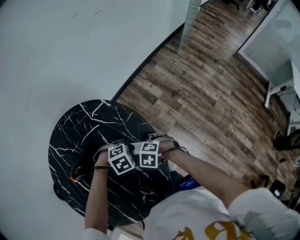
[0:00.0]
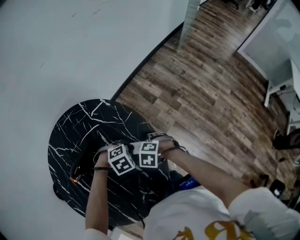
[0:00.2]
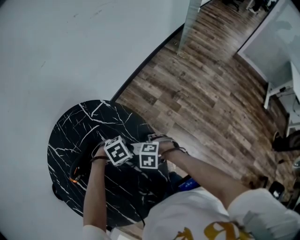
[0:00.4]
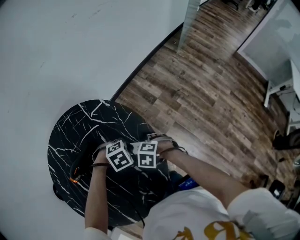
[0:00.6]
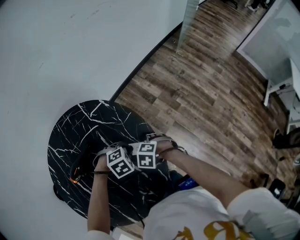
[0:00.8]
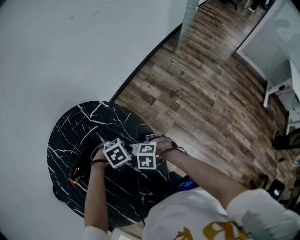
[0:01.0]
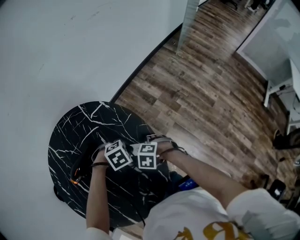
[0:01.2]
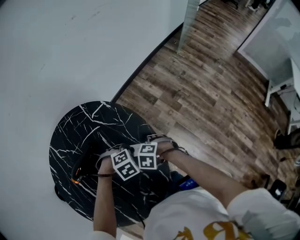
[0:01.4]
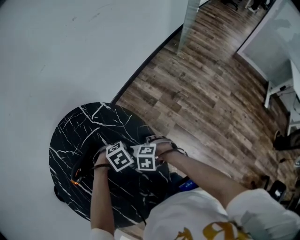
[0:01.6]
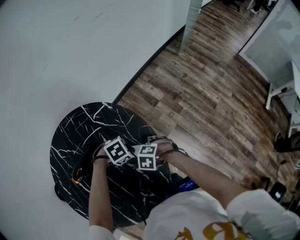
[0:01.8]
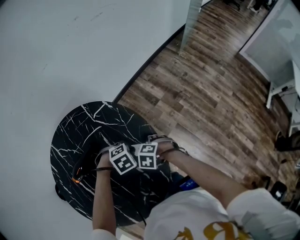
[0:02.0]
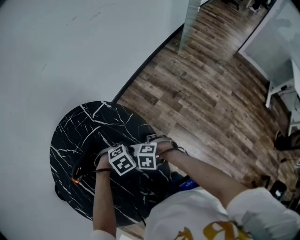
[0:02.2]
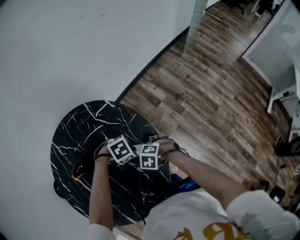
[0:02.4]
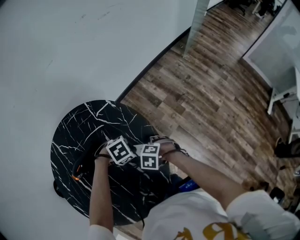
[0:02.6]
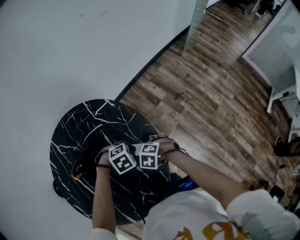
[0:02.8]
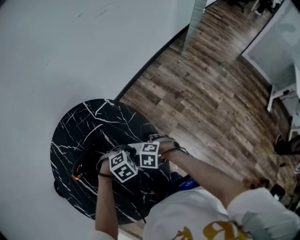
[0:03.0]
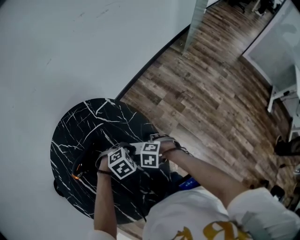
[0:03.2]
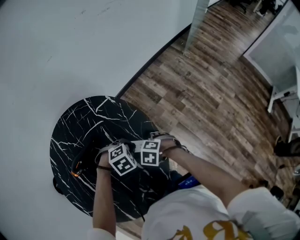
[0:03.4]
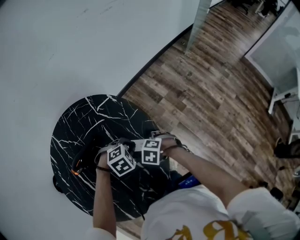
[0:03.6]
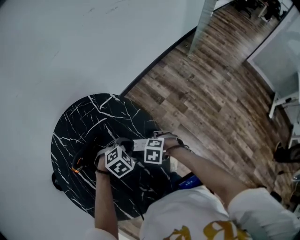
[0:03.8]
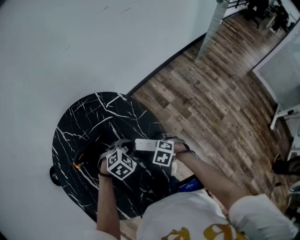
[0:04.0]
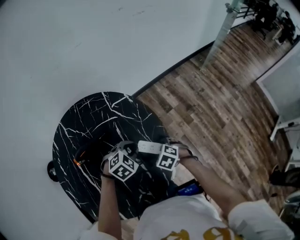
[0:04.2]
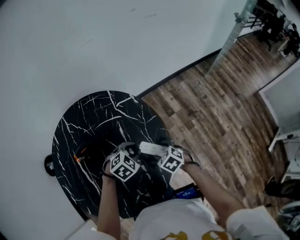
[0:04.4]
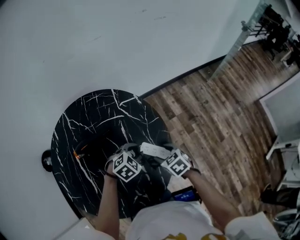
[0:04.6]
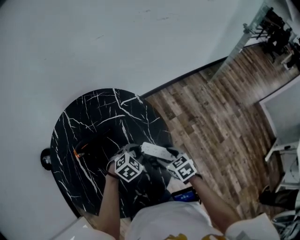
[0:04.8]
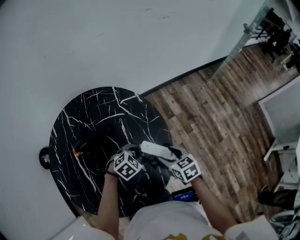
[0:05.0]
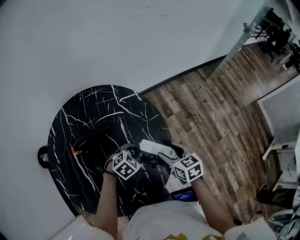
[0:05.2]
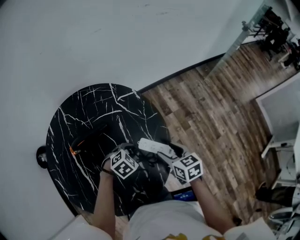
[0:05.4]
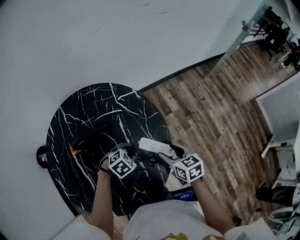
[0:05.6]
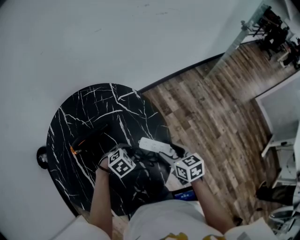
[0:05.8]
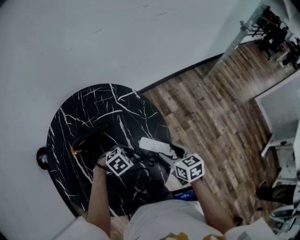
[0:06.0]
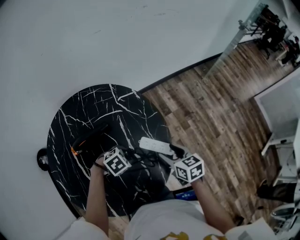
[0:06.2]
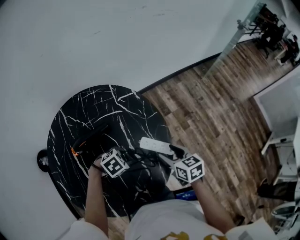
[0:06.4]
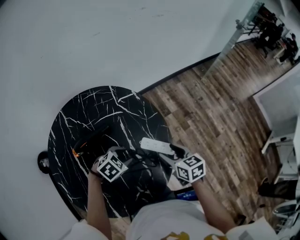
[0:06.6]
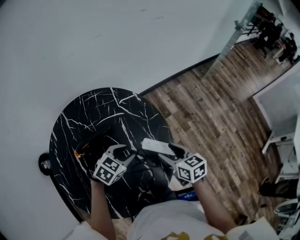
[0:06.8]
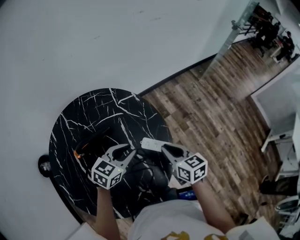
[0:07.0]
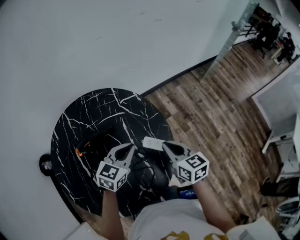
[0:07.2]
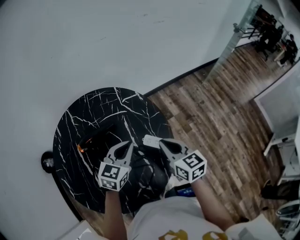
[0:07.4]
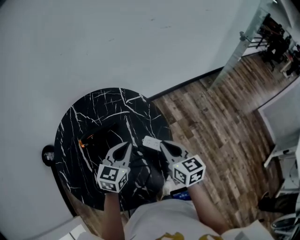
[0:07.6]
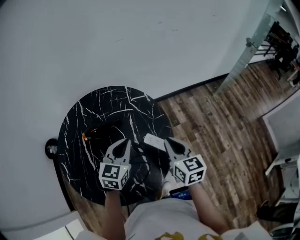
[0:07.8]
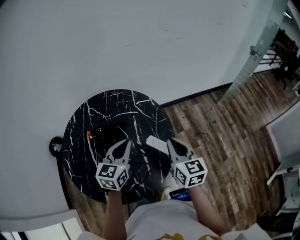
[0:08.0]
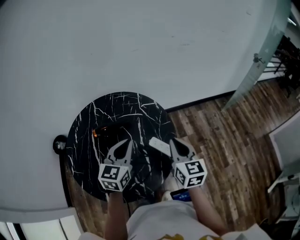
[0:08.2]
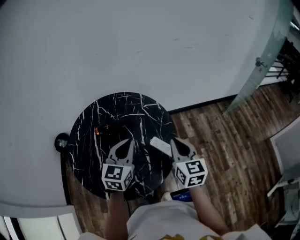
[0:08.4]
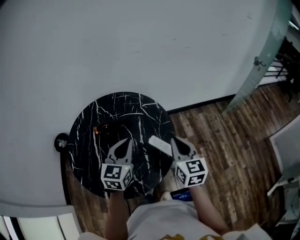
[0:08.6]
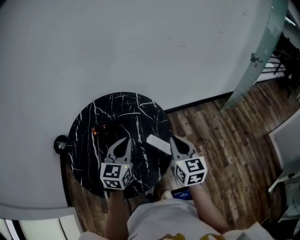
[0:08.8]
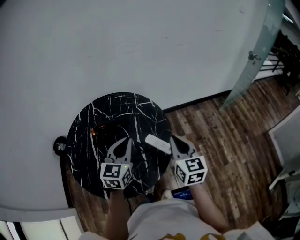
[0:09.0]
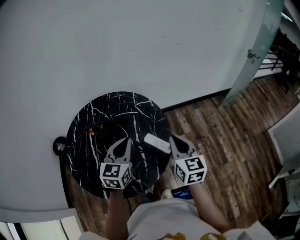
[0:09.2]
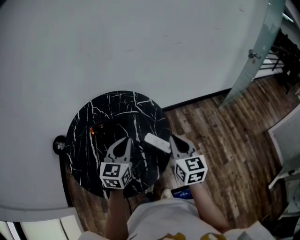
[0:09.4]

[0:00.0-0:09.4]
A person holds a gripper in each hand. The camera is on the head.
0:00.0 to 0:03.2: There are only small adjustments of the grippers.
0:03.2 to 0:04.8: The left gripper turns by approximately 30 degrees, while the right gripper shifts about 5 cm upward, and changes its angle by some 40 degrees.
0:04.8 to 0:06.2: The left gripper moves some 10 cm, and changes its angle by roughly 20 degrees, while the right gripper turns by approximately 20 degrees.
0:06.2 to 0:07.8: The two grippers go roughly 15 cm upward. The right gripper turns by some 20 degrees, and closes; the left gripper angles its fingers upward, by about 50 degrees, and closes up.
0:07.8 to 0:09.4: The left gripper moves upward and backward, some 10 cm, while the right gripper moves upward, approximately 5 cm.

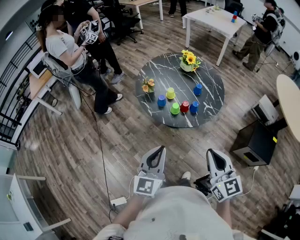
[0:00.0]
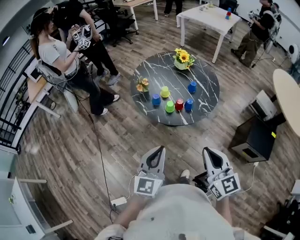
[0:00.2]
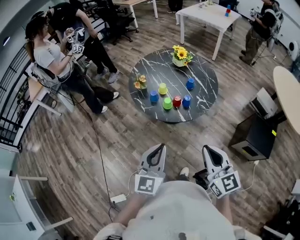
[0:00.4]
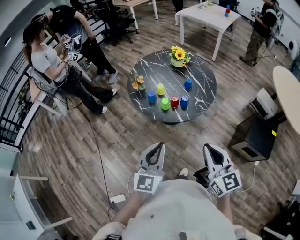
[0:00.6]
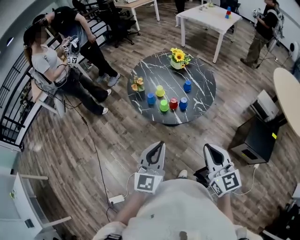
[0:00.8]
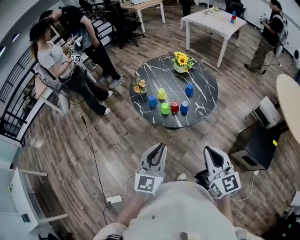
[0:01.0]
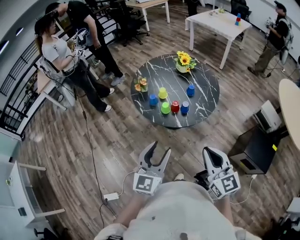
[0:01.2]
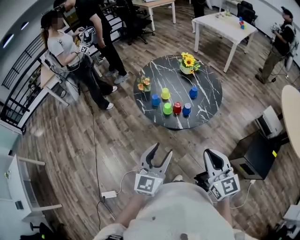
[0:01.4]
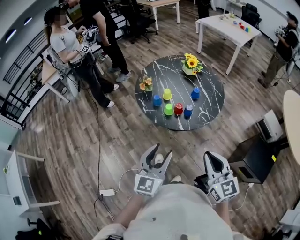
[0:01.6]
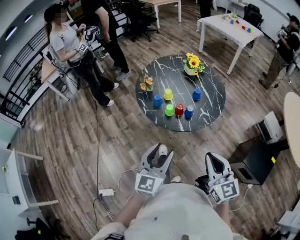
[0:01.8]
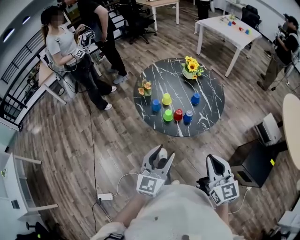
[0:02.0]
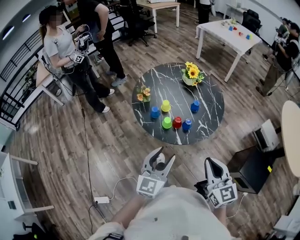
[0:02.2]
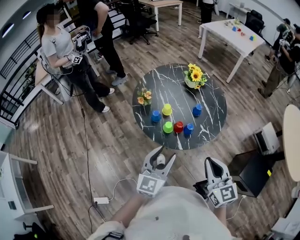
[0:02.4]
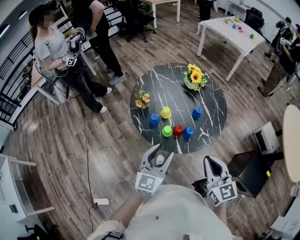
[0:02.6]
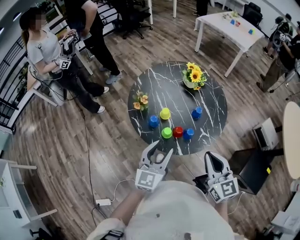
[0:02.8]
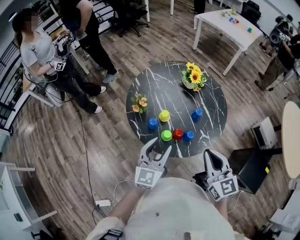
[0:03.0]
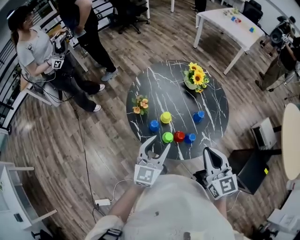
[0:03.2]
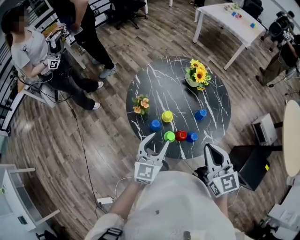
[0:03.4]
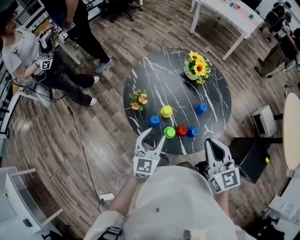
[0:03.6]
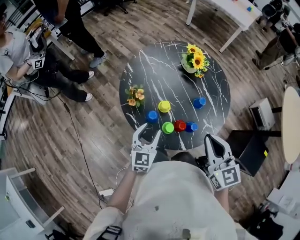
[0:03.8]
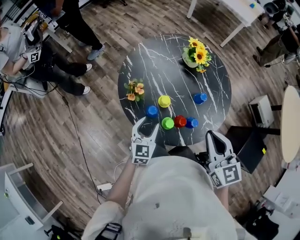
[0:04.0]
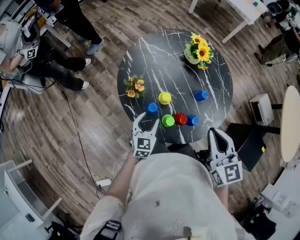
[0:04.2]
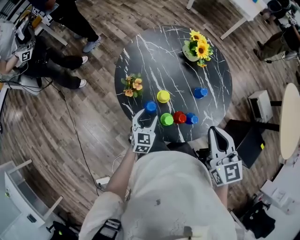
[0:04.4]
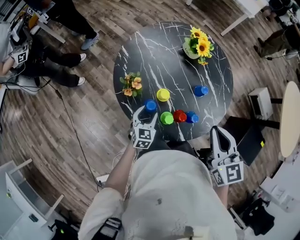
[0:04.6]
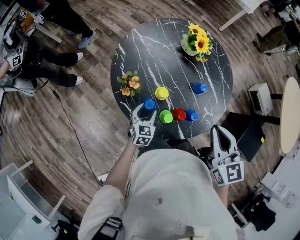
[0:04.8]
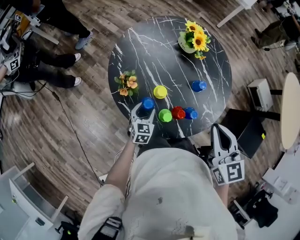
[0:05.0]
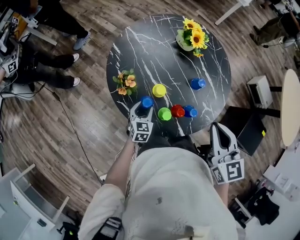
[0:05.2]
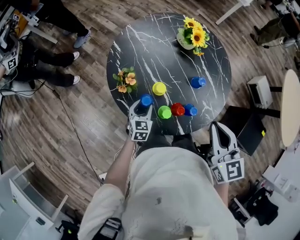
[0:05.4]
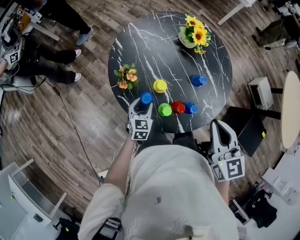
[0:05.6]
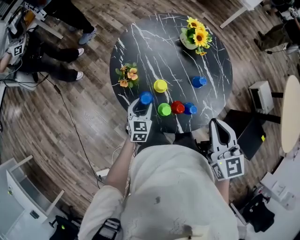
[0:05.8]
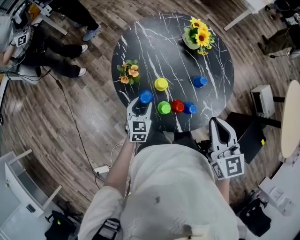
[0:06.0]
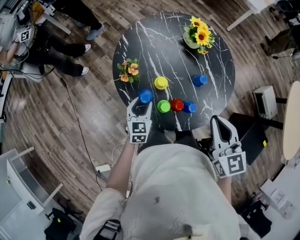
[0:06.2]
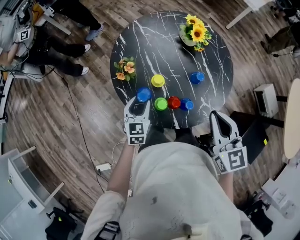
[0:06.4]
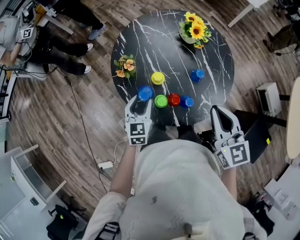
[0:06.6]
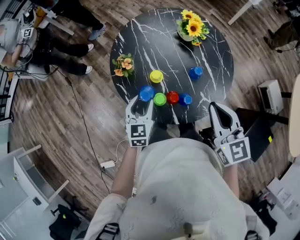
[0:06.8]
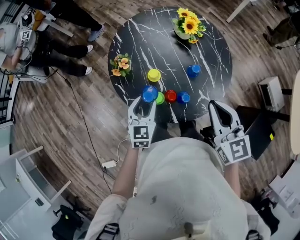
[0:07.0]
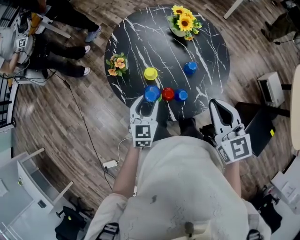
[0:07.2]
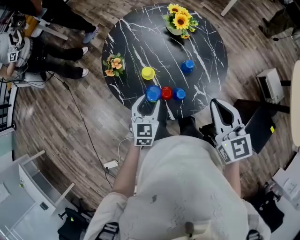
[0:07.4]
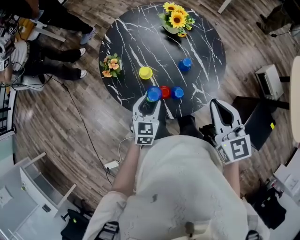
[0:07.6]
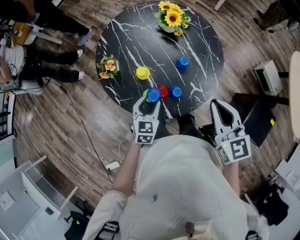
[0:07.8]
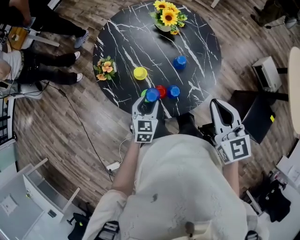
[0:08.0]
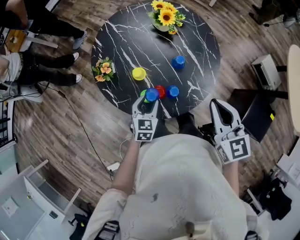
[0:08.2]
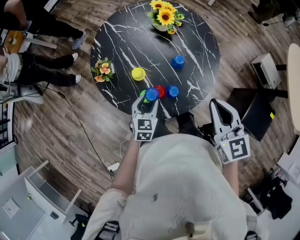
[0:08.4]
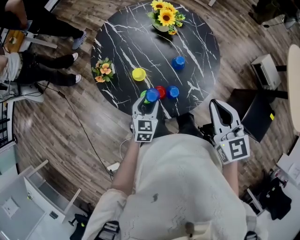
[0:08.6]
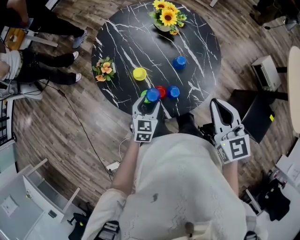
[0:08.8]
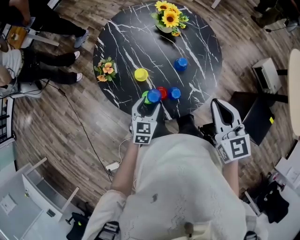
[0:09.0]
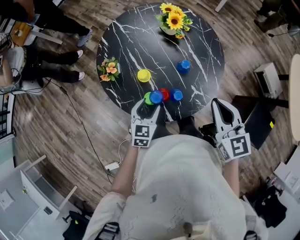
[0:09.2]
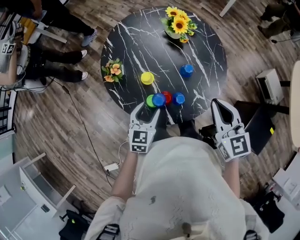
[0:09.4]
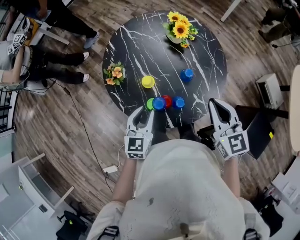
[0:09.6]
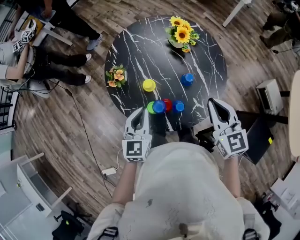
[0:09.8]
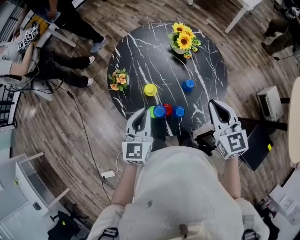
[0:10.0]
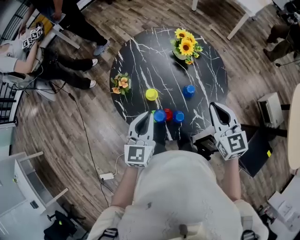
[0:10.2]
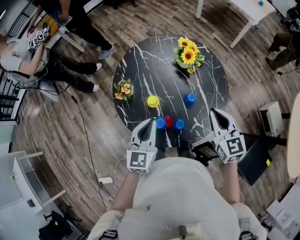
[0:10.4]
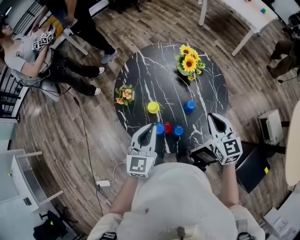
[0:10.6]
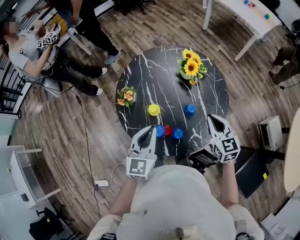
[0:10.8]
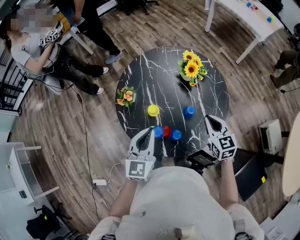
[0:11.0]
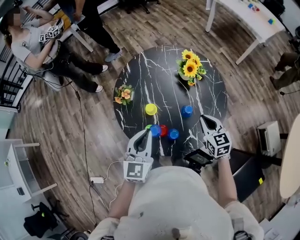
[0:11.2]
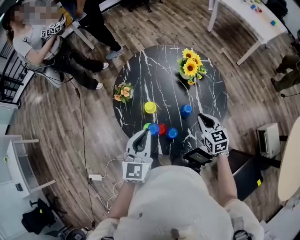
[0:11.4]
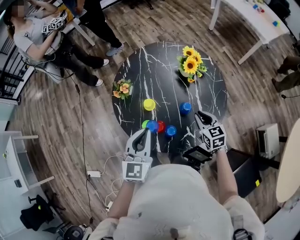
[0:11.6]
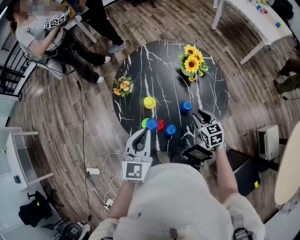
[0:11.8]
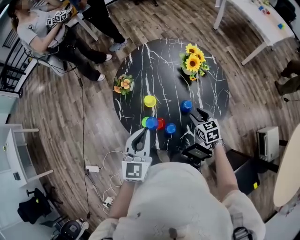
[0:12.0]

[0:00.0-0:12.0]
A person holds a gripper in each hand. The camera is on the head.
0:00.0 to 0:01.6: Both grippers move to the right, approximately 15 cm. The left gripper opens its fingers.
0:01.6 to 0:03.0: Both grippers move forward, about 30 cm.
0:03.0 to 0:04.4: The right gripper moves forward, about 15 cm; the left gripper shifts approximately 30 cm downward and forward, and turns by about 30 degrees.
0:06.0 to 0:07.6: The right gripper goes about 10 cm to the right. The left gripper moves to the right and backward, roughly 15 cm.
0:07.6 to 0:09.0: The grippers stay close to where they were, moving slightly.
0:09.0 to 0:10.4: The left gripper is displaced upward by approximately 20 cm, swivels about 30 degrees, and closes its fingers, while the right gripper moves forward, approximately 10 cm.
0:10.4 to 0:12.0: The right gripper moves downward, about 20 cm, changes its angle by roughly 30 degrees, and opens; the left gripper moves roughly 5 cm.

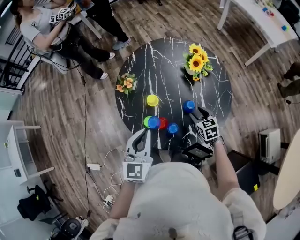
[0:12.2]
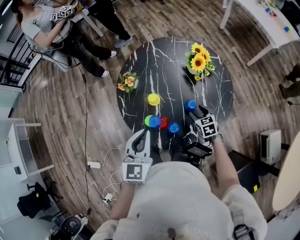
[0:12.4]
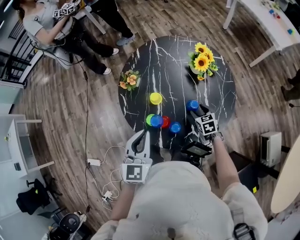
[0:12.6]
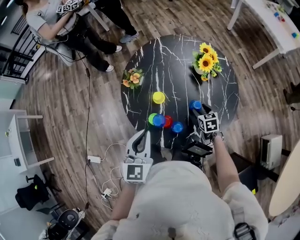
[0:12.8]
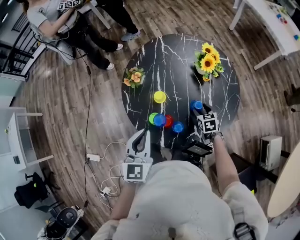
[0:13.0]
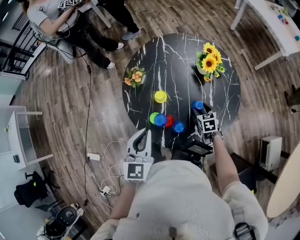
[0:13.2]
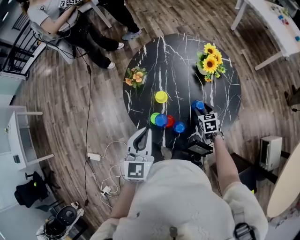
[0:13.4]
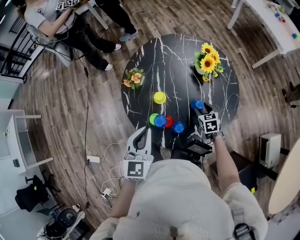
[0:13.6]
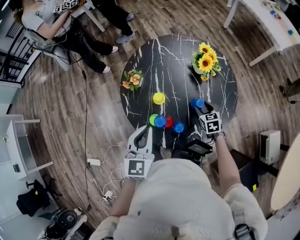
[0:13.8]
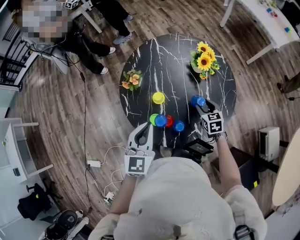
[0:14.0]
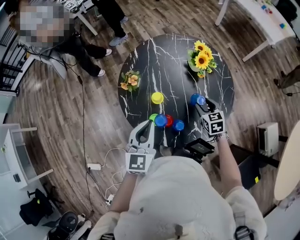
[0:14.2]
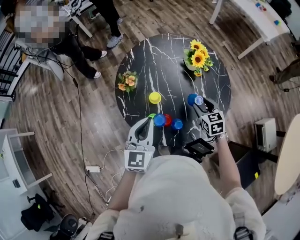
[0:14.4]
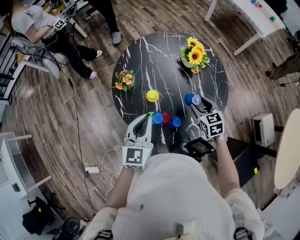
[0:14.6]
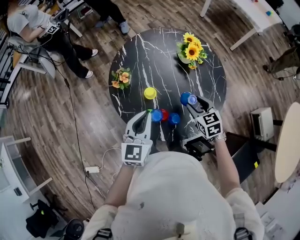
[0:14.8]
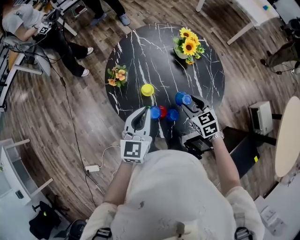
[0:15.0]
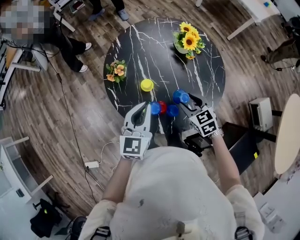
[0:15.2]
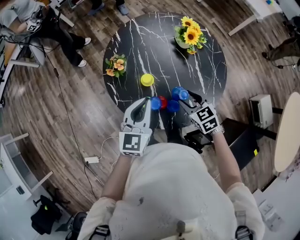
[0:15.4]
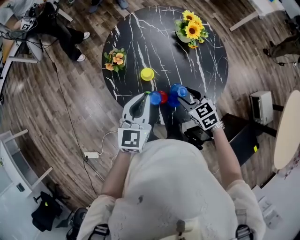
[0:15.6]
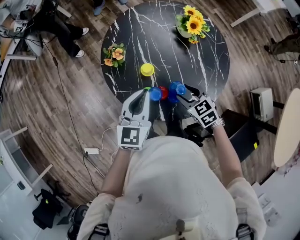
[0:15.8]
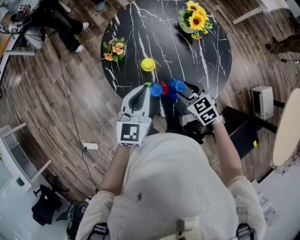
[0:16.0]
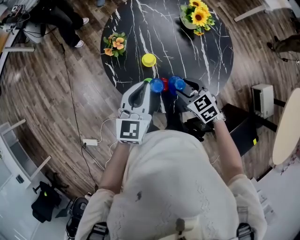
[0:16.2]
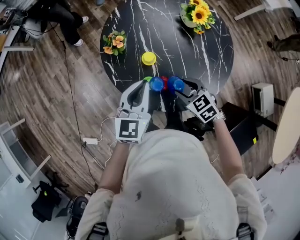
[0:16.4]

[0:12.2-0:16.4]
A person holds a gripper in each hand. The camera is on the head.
0:12.2 to 0:13.6: The right gripper changes place by approximately 5 cm.
0:13.6 to 0:15.0: The right gripper shifts about 15 cm upward, to the left and backward.
0:15.0 to 0:16.4: The right gripper shifts roughly 10 cm to the left and downward.
